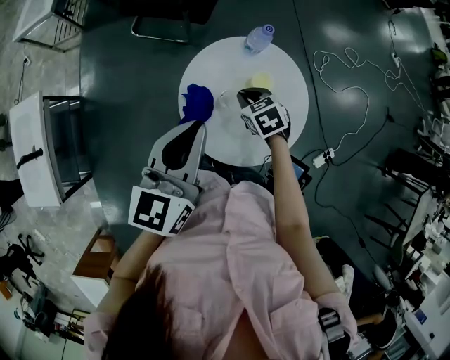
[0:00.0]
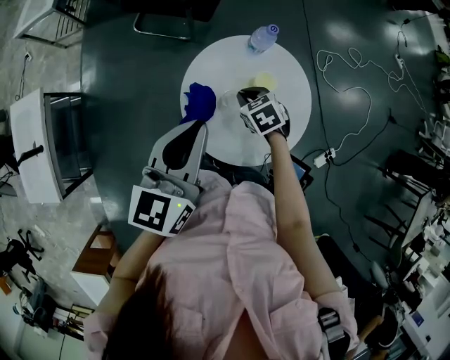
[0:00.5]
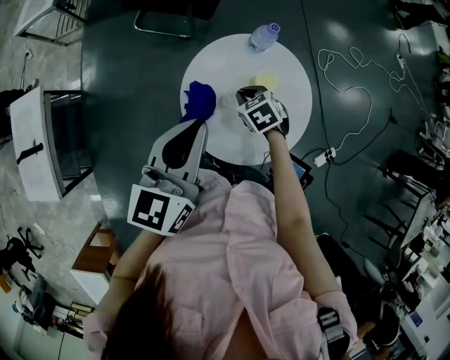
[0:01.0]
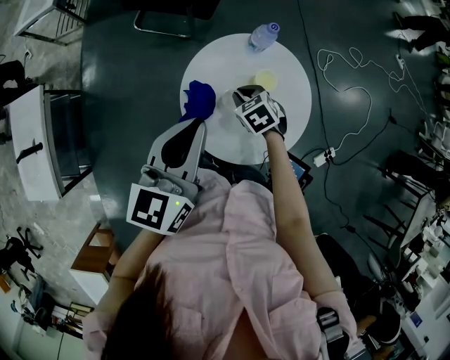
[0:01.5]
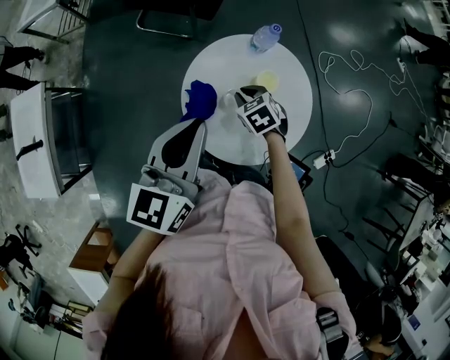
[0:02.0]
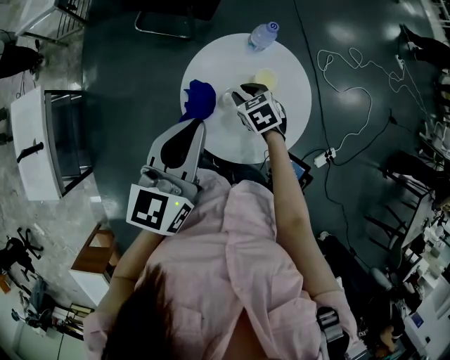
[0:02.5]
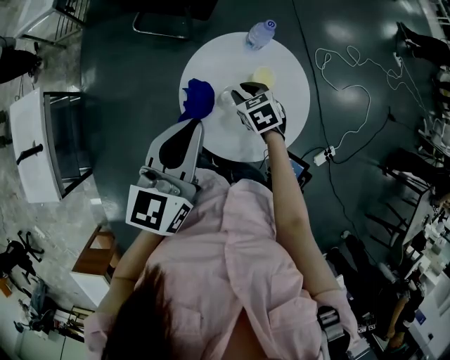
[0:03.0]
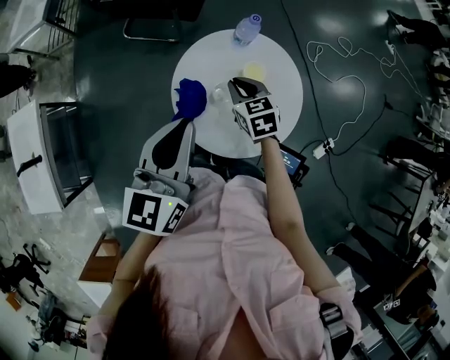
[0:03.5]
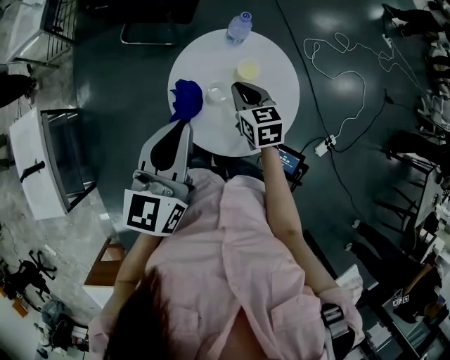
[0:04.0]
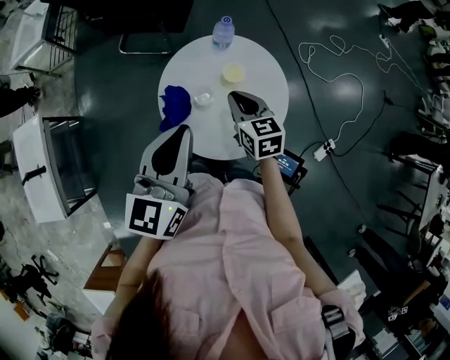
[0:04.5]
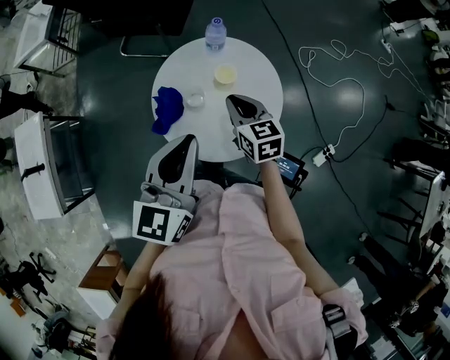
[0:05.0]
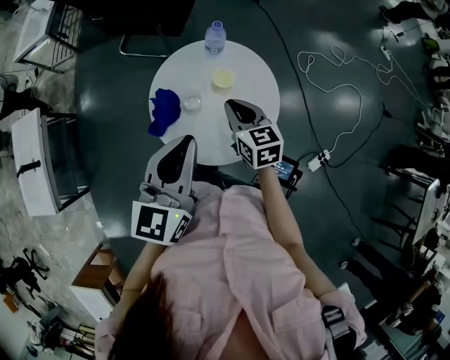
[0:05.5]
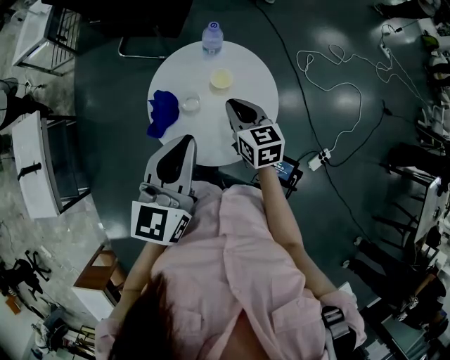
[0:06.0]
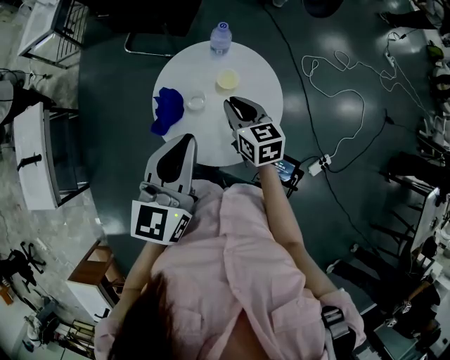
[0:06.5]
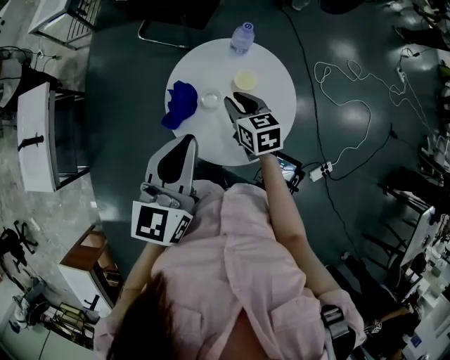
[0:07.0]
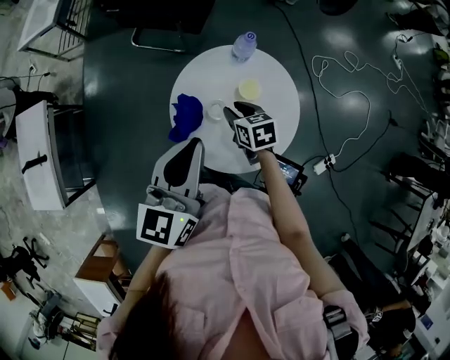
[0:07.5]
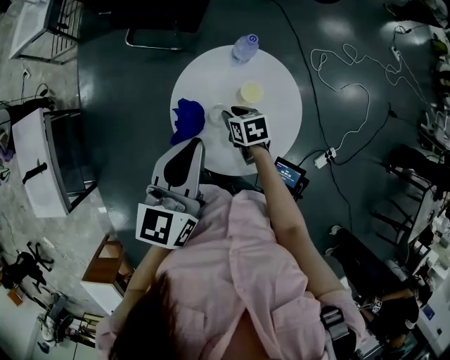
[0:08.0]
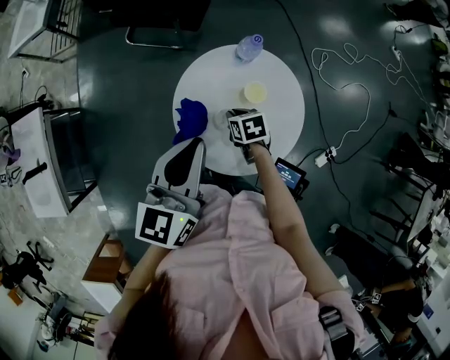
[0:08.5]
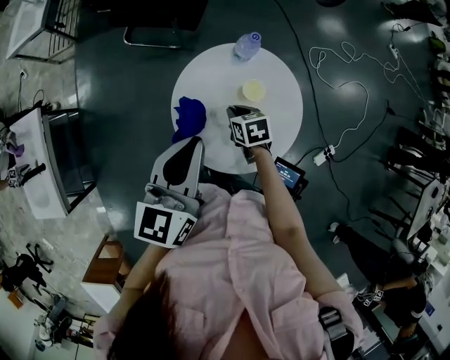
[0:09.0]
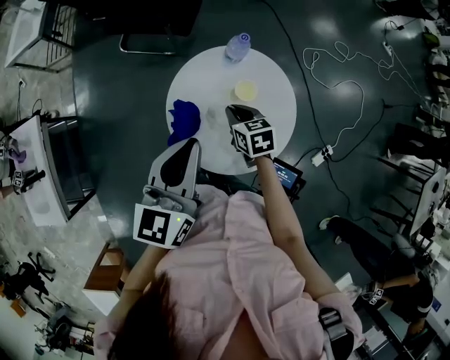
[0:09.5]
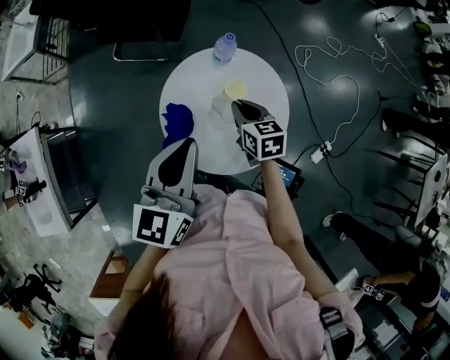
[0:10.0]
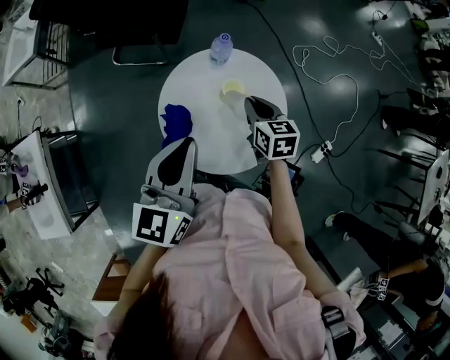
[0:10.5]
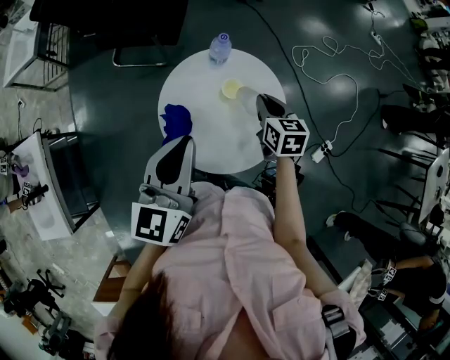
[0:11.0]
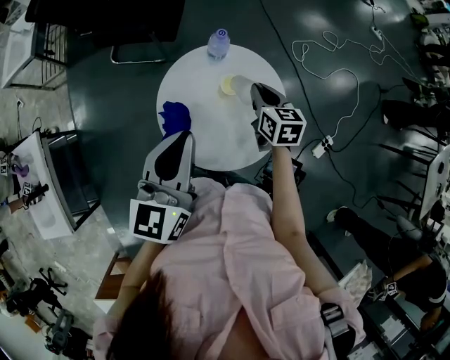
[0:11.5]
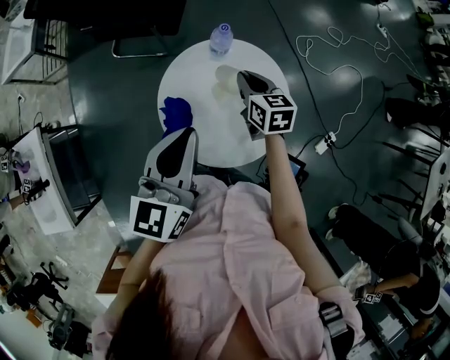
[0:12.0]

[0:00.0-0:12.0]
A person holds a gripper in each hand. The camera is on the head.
0:00.0 to 0:02.0: The grippers make only small movements.
0:02.0 to 0:04.0: The right gripper travels upward by roughly 10 cm, and swivels approximately 40 degrees.
0:04.0 to 0:06.0: Both grippers travel together to the right, approximately 10 cm.
0:06.0 to 0:08.0: The left gripper travels forward and to the left by some 10 cm. The right gripper travels downward and to the left by some 15 cm, and swivels some 30 degrees.
0:08.0 to 0:10.0: The right gripper travels upward by about 10 cm, and changes its angle by some 20 degrees.
0:10.0 to 0:12.0: The right gripper heads forward, covering roughly 5 cm, and goes to the right and returns, about 10 cm each way.

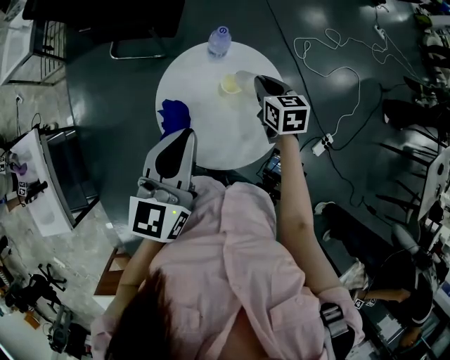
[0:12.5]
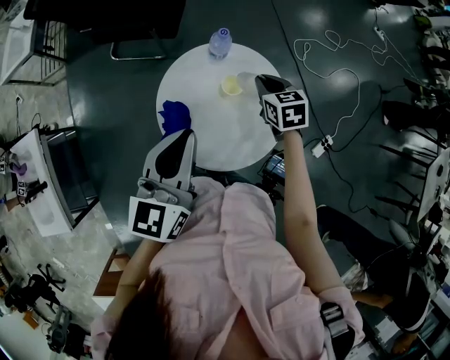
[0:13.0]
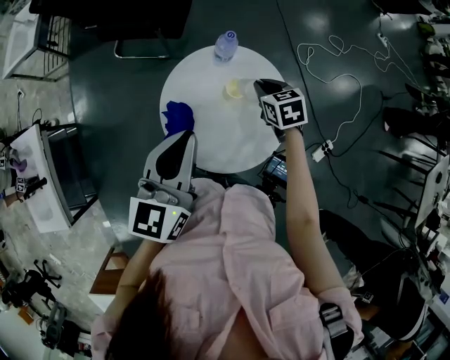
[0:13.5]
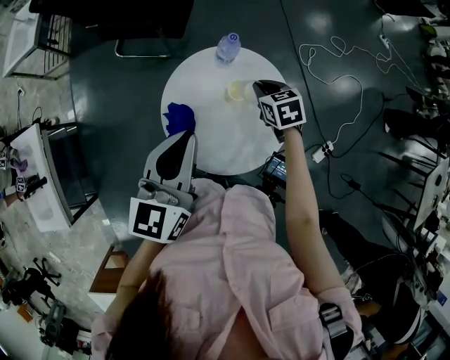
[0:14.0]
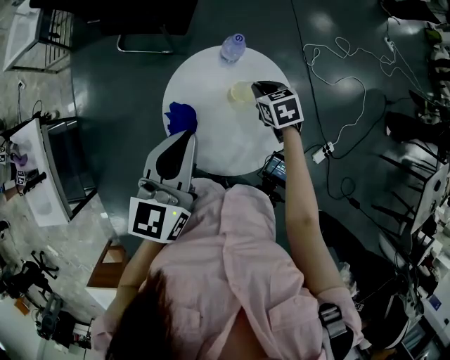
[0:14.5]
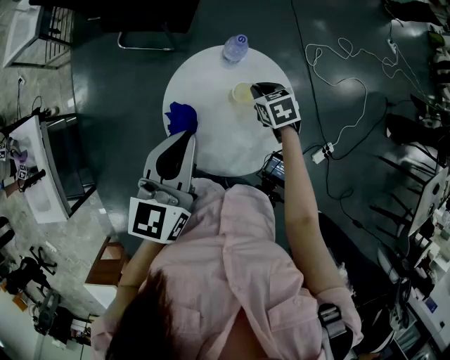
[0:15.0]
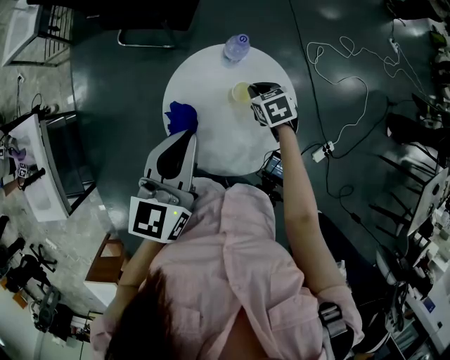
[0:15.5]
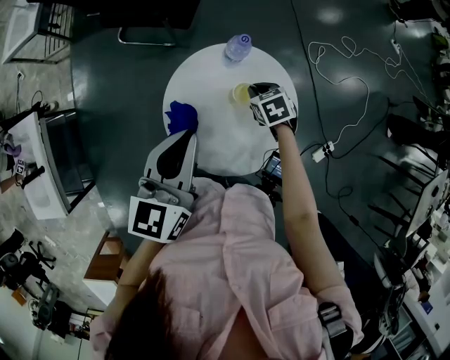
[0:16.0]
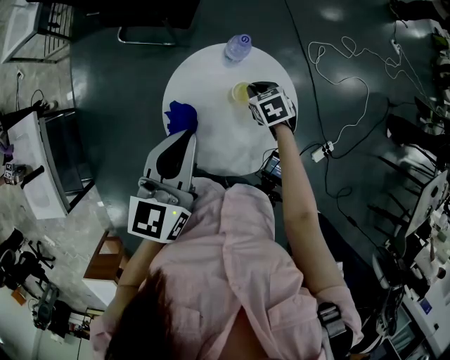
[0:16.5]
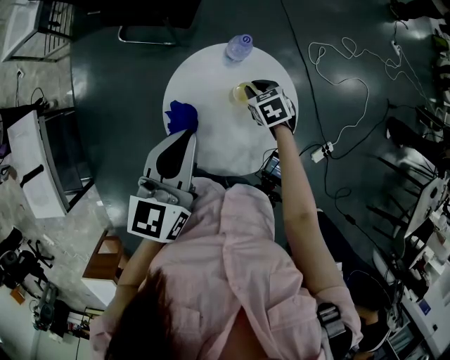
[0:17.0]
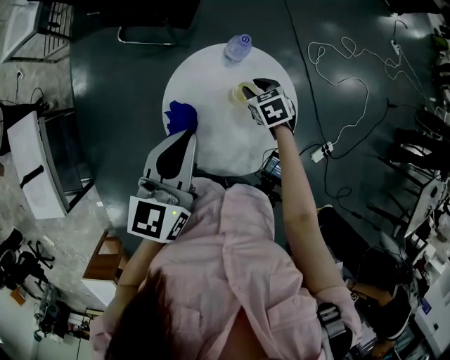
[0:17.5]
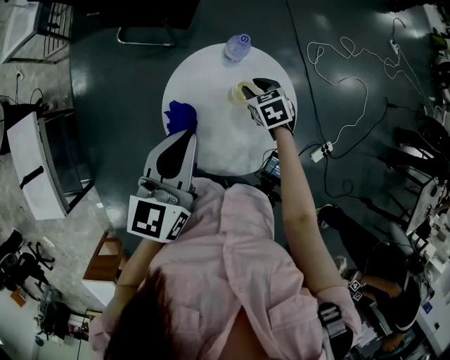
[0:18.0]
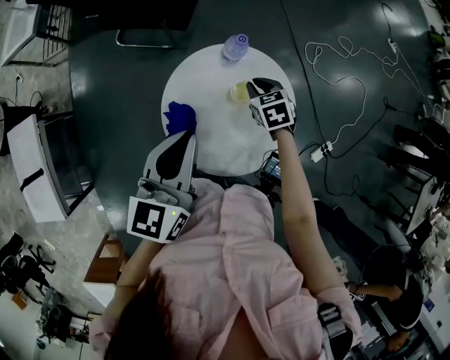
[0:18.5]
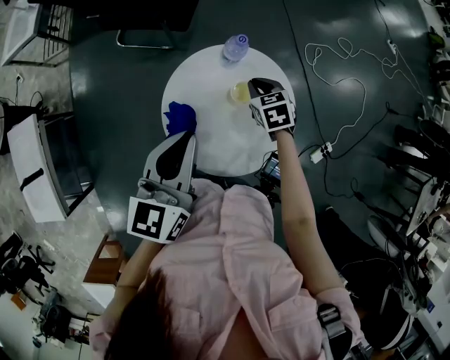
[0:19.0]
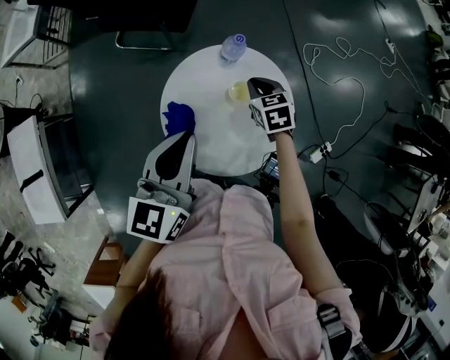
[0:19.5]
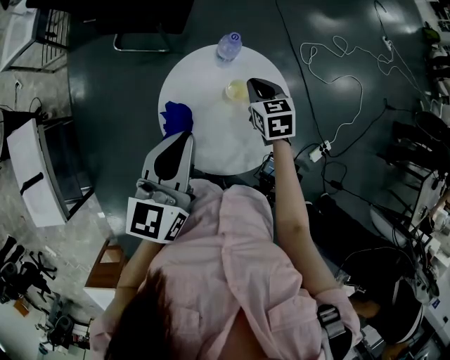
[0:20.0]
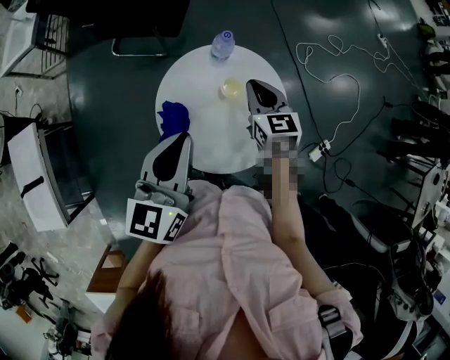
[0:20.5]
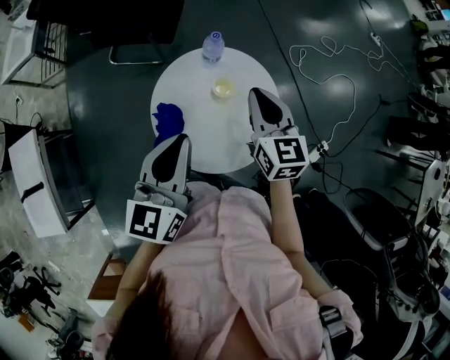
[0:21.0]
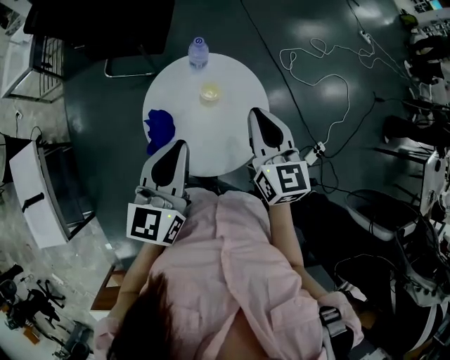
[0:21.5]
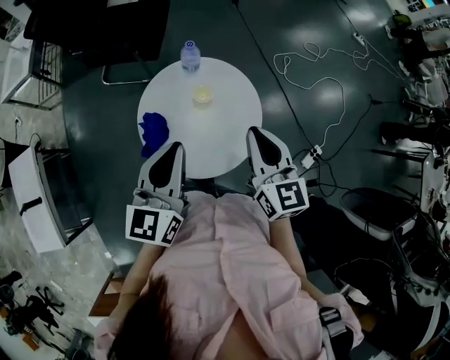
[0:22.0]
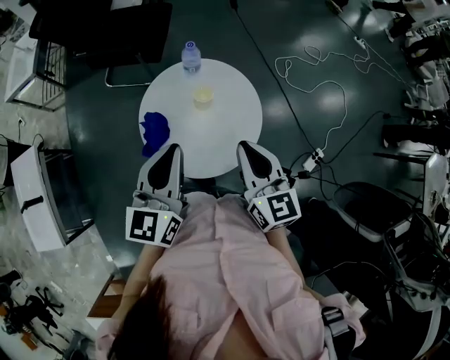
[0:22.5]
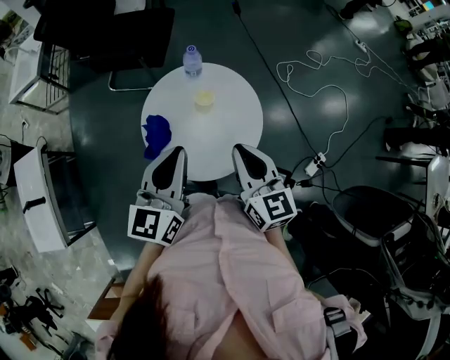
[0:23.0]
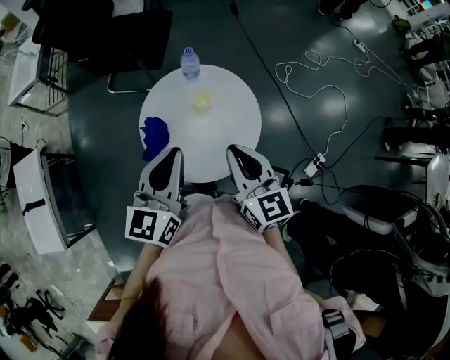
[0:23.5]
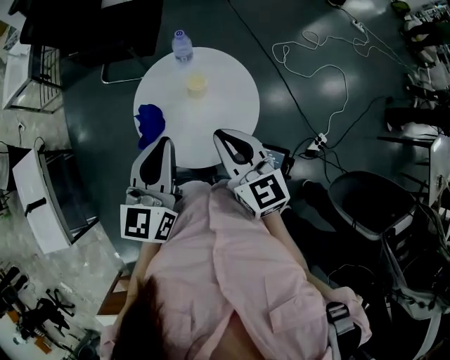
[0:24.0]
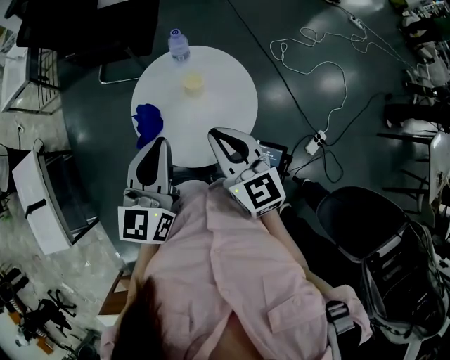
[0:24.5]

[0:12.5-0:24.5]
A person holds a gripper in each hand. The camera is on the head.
0:12.5 to 0:14.5: The right gripper goes about 5 cm downward, and changes its angle by about 20 degrees.
0:14.5 to 0:16.5: The right gripper is displaced downward by roughly 5 cm.
0:16.5 to 0:18.5: The grippers move only a little.
0:18.5 to 0:20.5: The right gripper heads upward, covering some 10 cm, and turns by about 30 degrees.
0:20.5 to 0:22.5: The left gripper is displaced backward and to the right by some 10 cm. The right gripper travels backward and upward by roughly 20 cm, and changes its angle by some 20 degrees.
0:22.5 to 0:24.5: The right gripper travels to the left by about 5 cm.

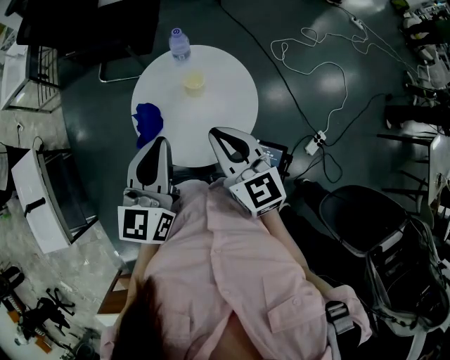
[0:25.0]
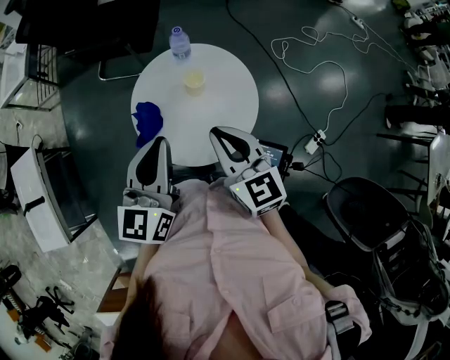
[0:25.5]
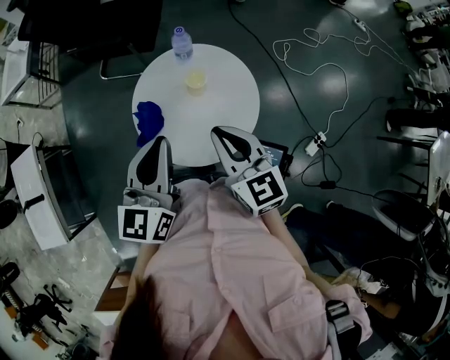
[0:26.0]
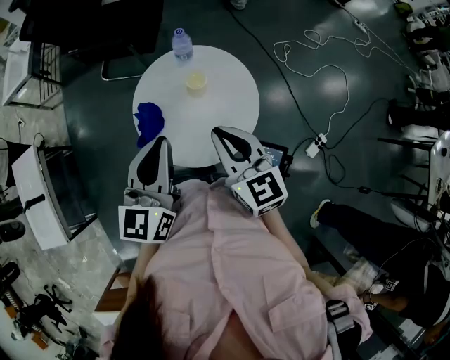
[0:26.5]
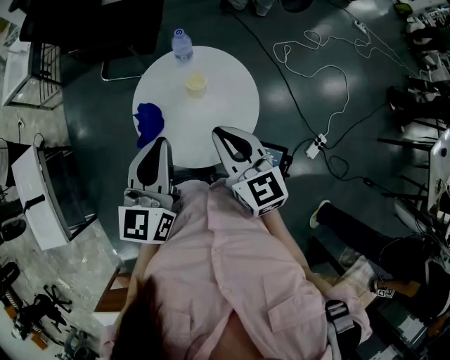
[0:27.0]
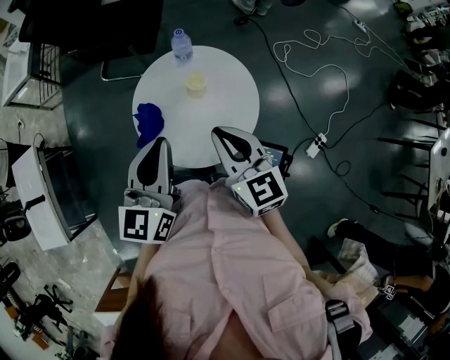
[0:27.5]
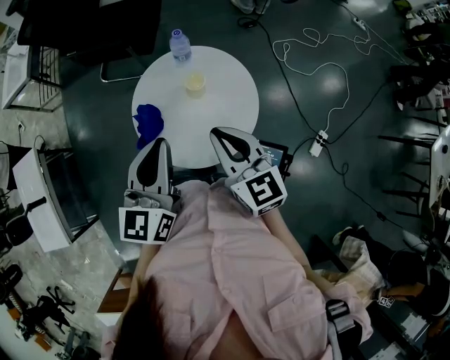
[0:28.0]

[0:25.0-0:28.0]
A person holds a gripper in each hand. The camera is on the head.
0:25.0 to 0:28.0: Both grippers stay put.
